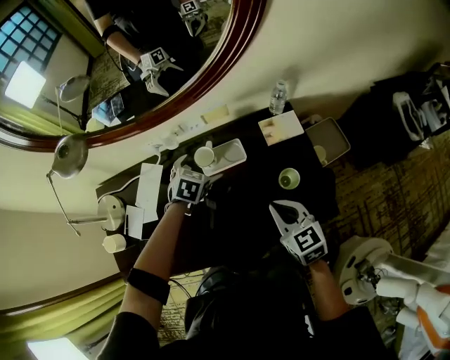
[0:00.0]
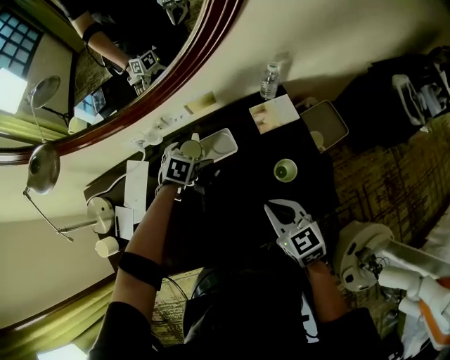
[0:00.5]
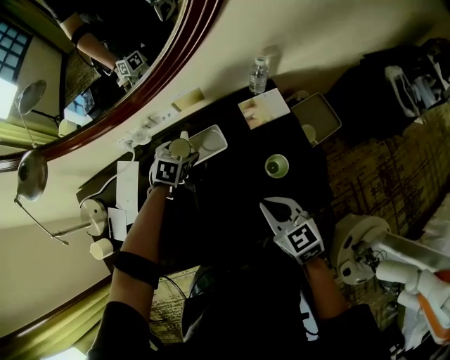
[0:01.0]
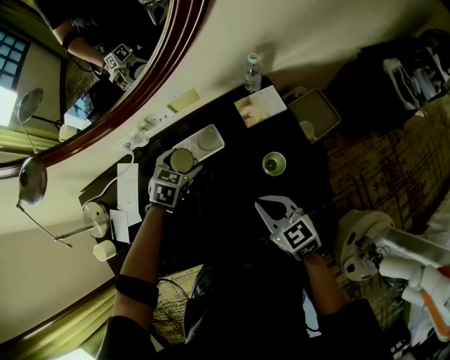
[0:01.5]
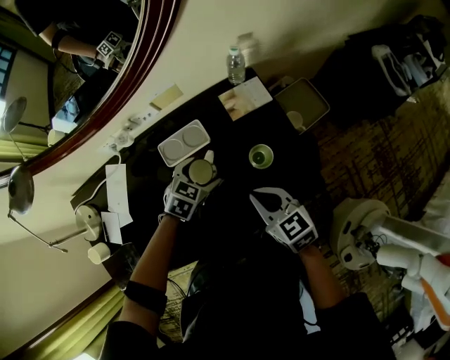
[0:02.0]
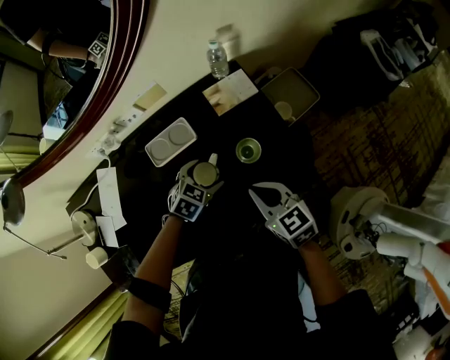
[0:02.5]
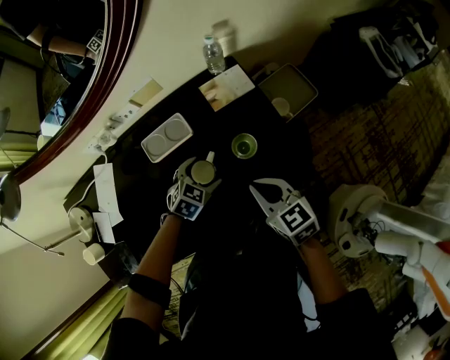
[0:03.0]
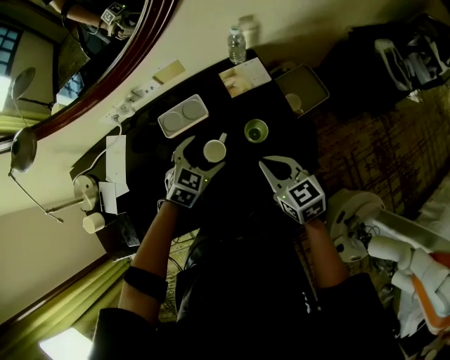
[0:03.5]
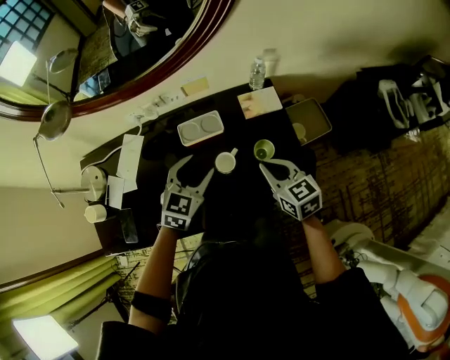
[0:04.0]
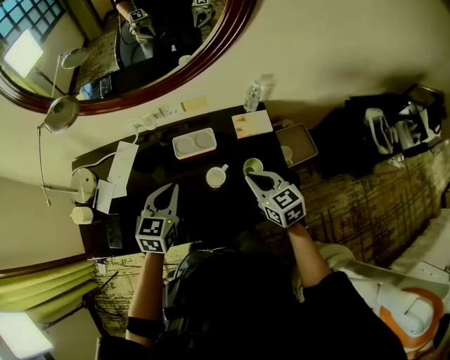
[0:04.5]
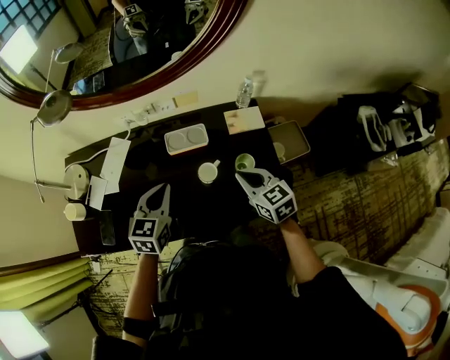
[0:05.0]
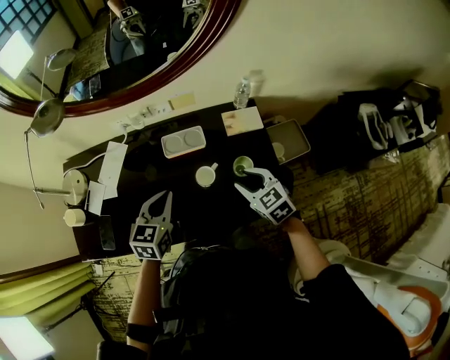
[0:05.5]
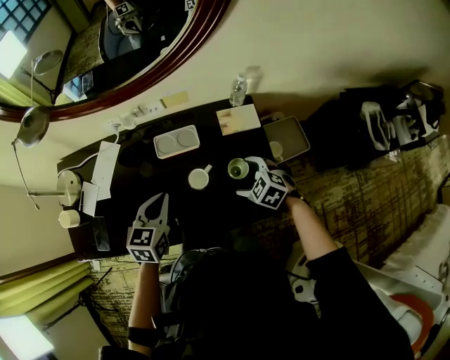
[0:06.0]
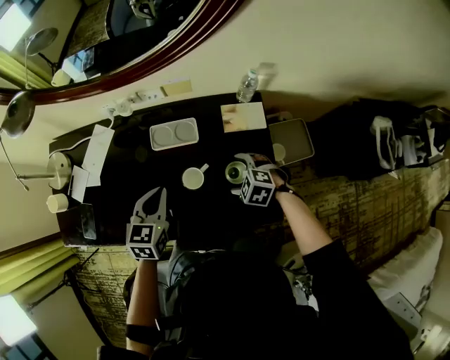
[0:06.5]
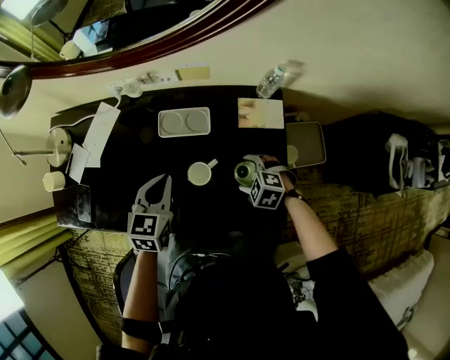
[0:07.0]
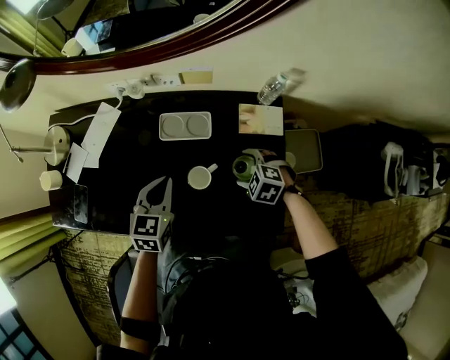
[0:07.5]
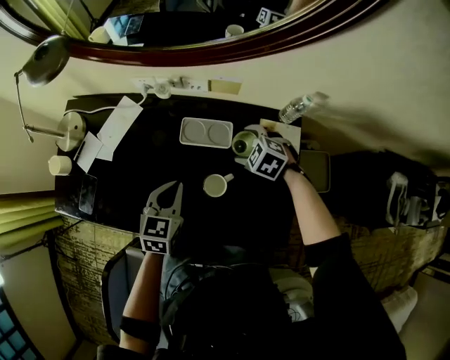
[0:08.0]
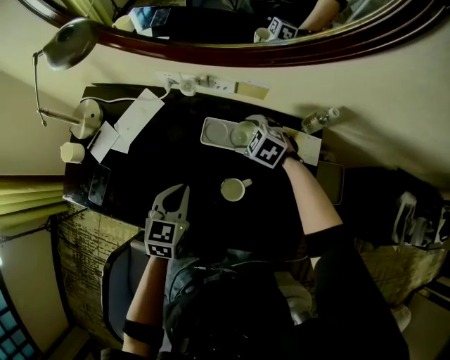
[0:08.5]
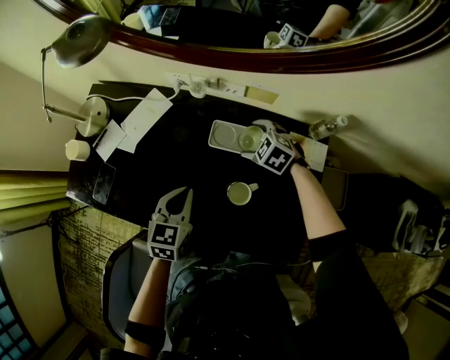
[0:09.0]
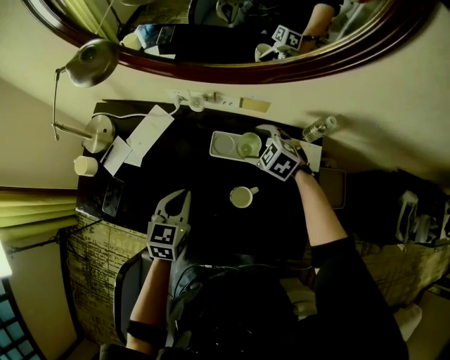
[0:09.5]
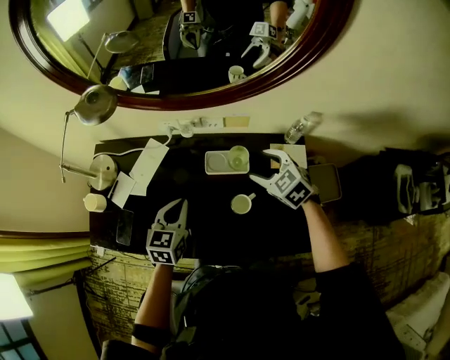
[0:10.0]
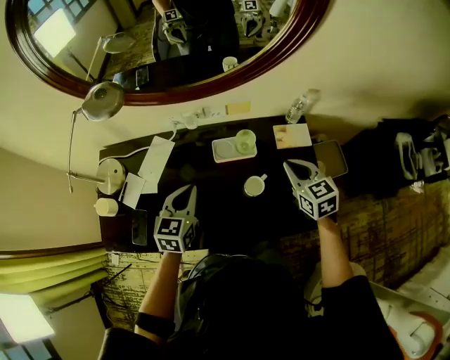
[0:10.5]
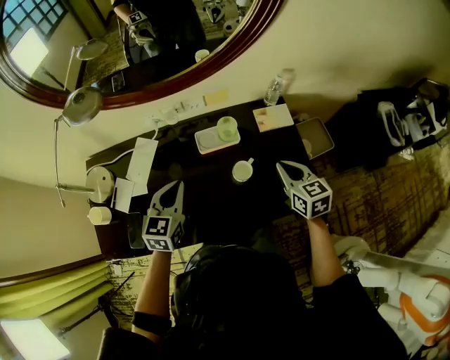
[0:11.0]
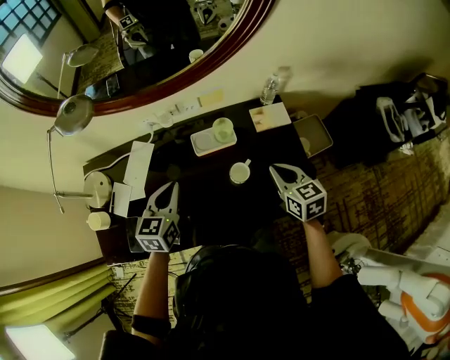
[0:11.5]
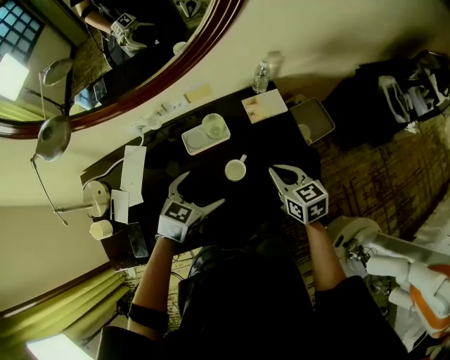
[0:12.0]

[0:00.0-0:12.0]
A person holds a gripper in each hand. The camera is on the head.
0:00.0 to 0:02.0: The right gripper is displaced downward by roughly 5 cm. The left gripper moves to the right, backward and downward, some 15 cm, and rotates approximately 20 degrees.
0:02.0 to 0:04.0: The left gripper moves upward, approximately 15 cm, and swivels approximately 30 degrees. The right gripper travels upward by some 5 cm.
0:04.0 to 0:06.0: The left gripper swivels about 30 degrees, and closes; the right gripper is displaced downward by roughly 10 cm, turns by roughly 50 degrees, and opens.
0:06.0 to 0:08.0: The right gripper shifts some 20 cm forward, and swivels approximately 20 degrees. Meanwhile the left gripper heads downward, covering approximately 5 cm.
0:08.0 to 0:10.0: The left gripper shifts about 10 cm to the left and upward, while the right gripper travels upward by about 15 cm, and rotates approximately 30 degrees.
0:10.0 to 0:12.0: The left gripper changes place by approximately 10 cm, swivels approximately 40 degrees, and opens; the right gripper moves about 15 cm, twists approximately 40 degrees clockwise, seen from behind, and closes.

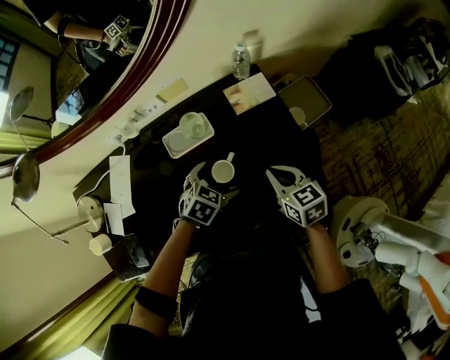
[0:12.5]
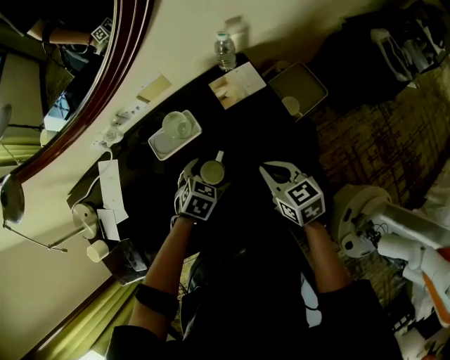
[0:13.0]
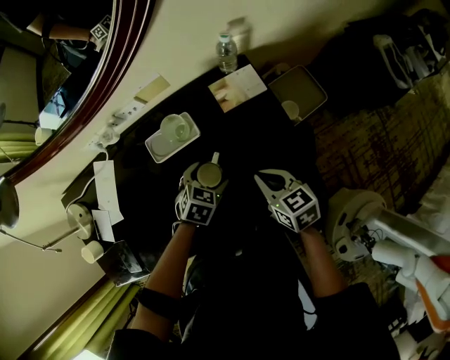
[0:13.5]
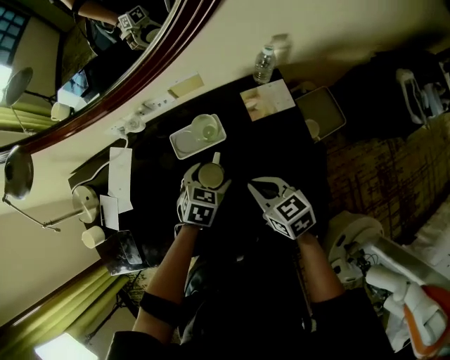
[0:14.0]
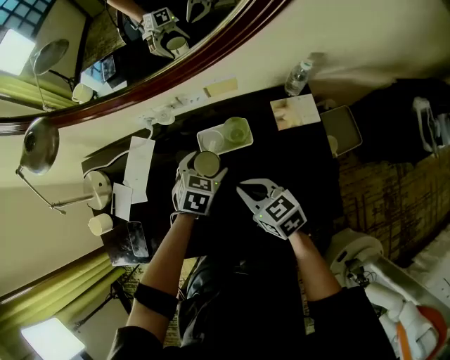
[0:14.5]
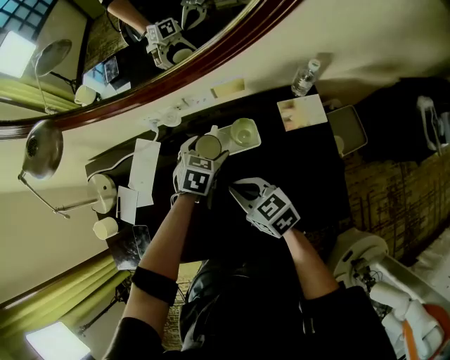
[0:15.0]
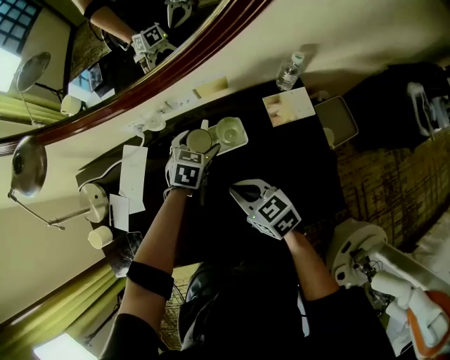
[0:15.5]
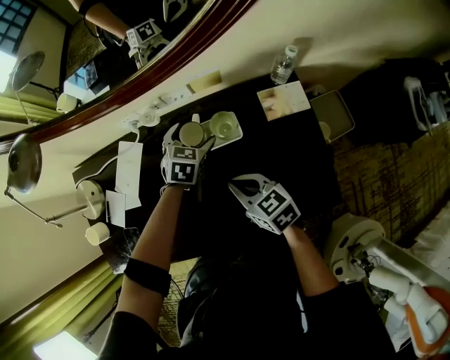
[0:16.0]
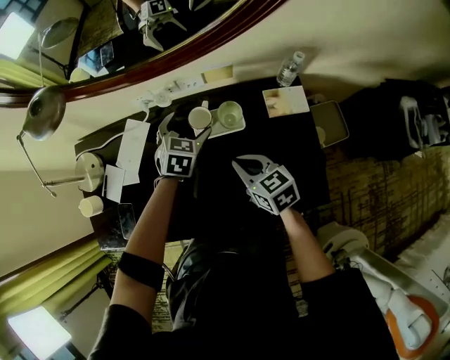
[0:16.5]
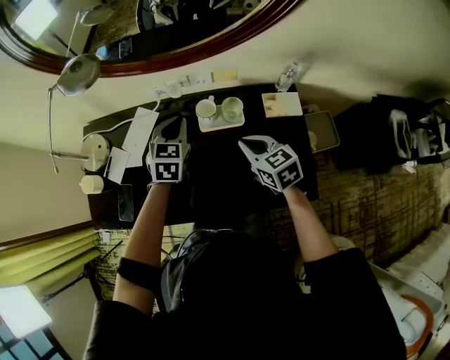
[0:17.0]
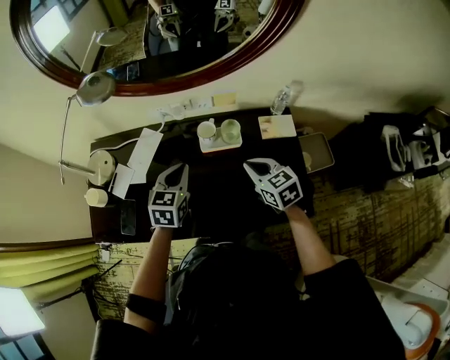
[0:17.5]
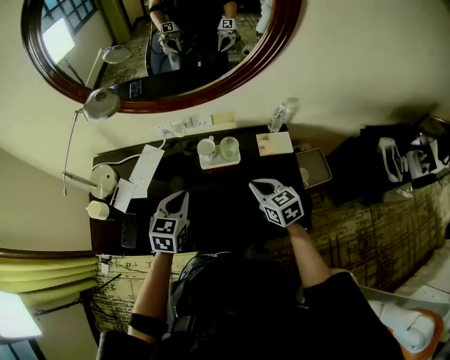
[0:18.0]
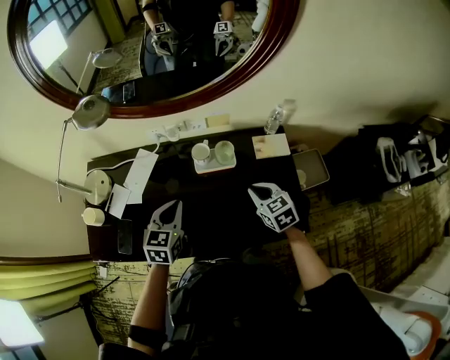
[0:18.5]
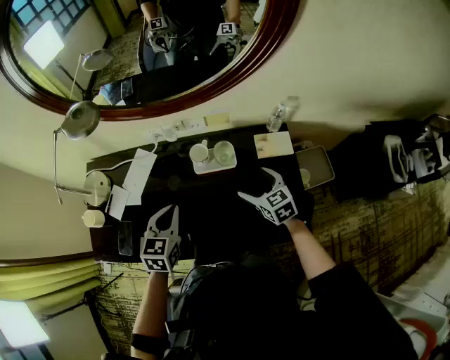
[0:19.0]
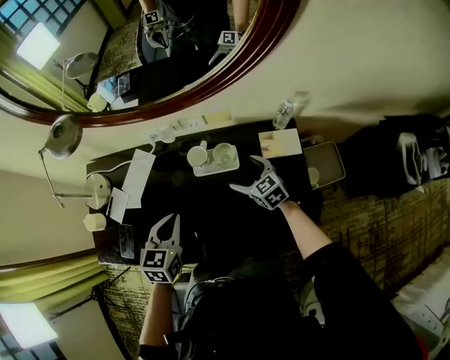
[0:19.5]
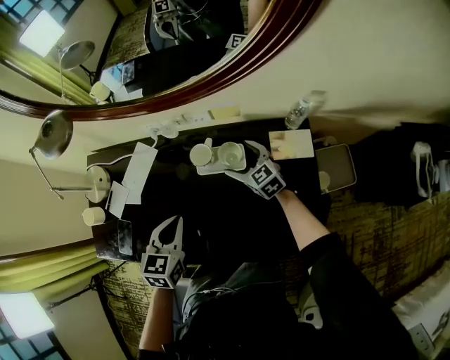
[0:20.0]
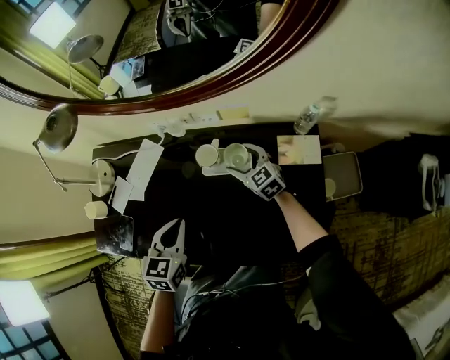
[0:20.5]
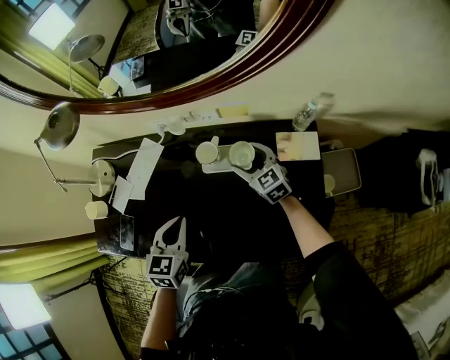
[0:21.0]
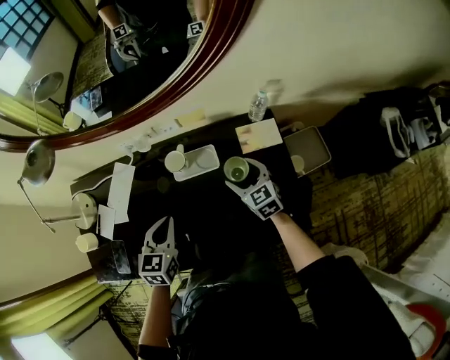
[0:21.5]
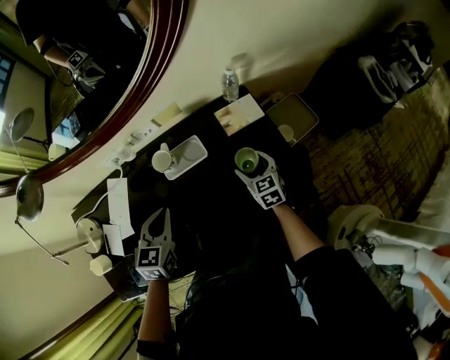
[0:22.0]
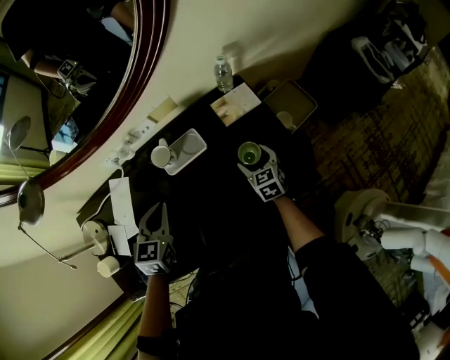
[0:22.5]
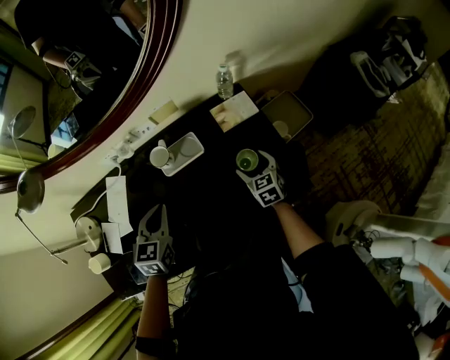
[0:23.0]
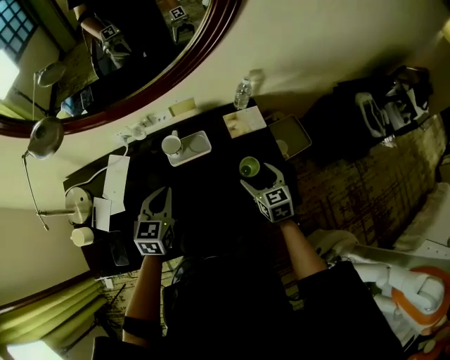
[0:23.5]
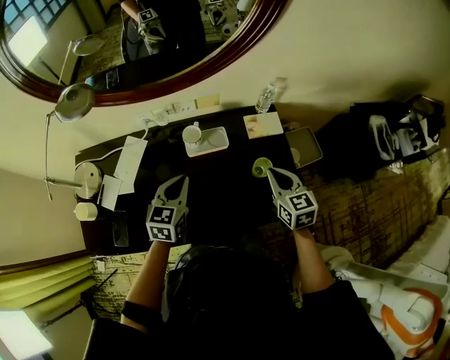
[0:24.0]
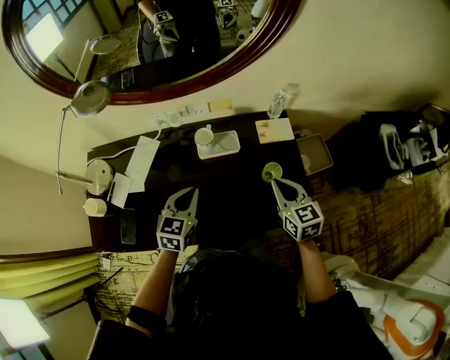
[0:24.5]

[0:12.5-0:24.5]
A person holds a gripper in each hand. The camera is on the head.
0:12.5 to 0:14.5: The right gripper changes place by roughly 20 cm, and changes its angle by some 30 degrees. The left gripper changes place by some 15 cm, and turns by roughly 30 degrees.
0:14.5 to 0:16.5: The left gripper heads forward and upward, covering approximately 10 cm.
0:16.5 to 0:18.5: The right gripper shifts about 10 cm to the right. Meanwhile the left gripper travels backward, upward and to the left by approximately 25 cm, and closes up.
0:18.5 to 0:20.5: The left gripper ends up roughly 5 cm from where it was, while the right gripper is displaced forward and downward by some 25 cm, rotates some 20 degrees, and opens.
0:20.5 to 0:22.5: The right gripper changes place by roughly 25 cm, and changes its angle by approximately 50 degrees. Meanwhile the left gripper changes place by some 5 cm, and rotates some 20 degrees.
0:22.5 to 0:24.5: The left gripper moves backward, approximately 5 cm; the right gripper travels upward by approximately 20 cm, and closes.

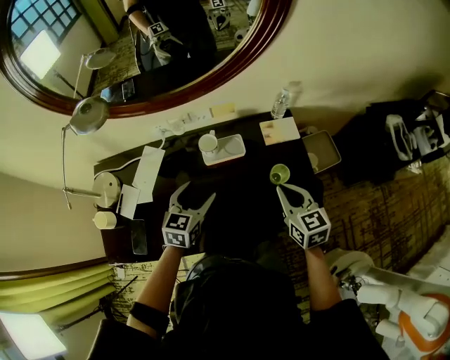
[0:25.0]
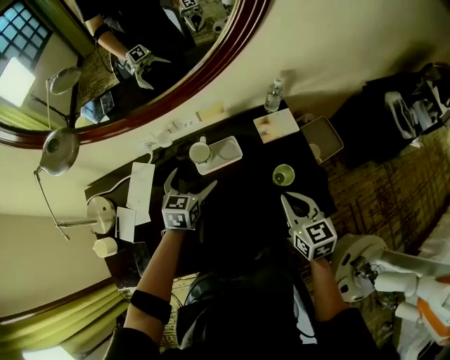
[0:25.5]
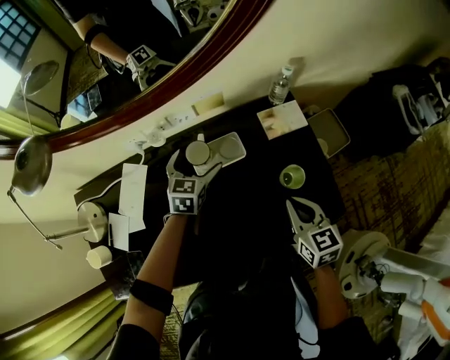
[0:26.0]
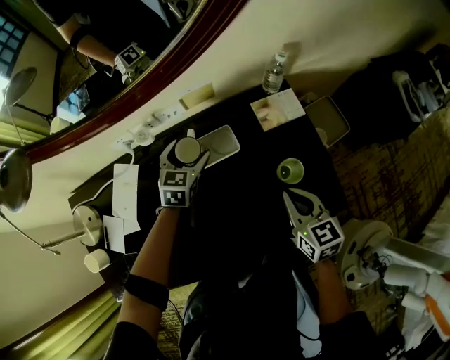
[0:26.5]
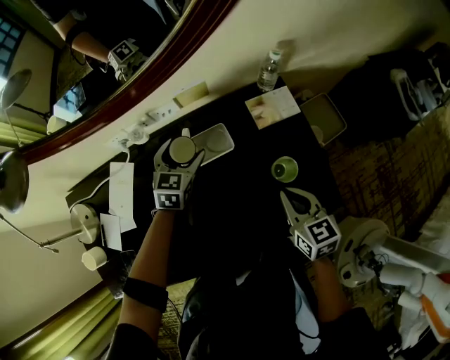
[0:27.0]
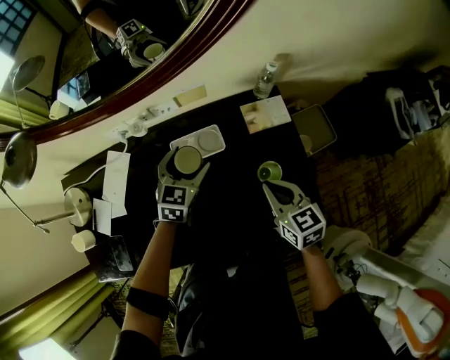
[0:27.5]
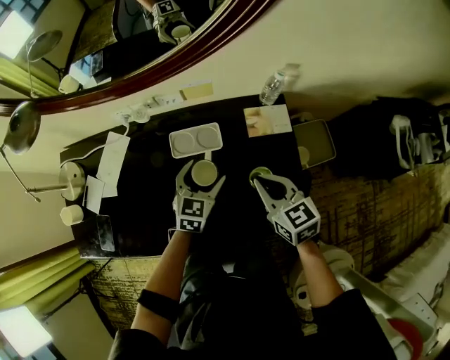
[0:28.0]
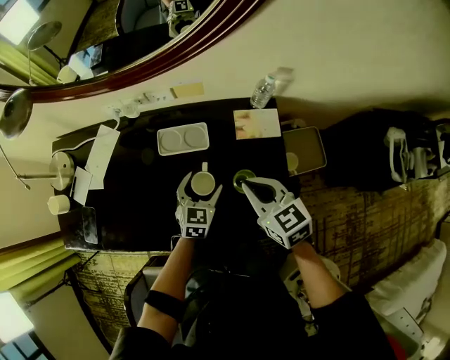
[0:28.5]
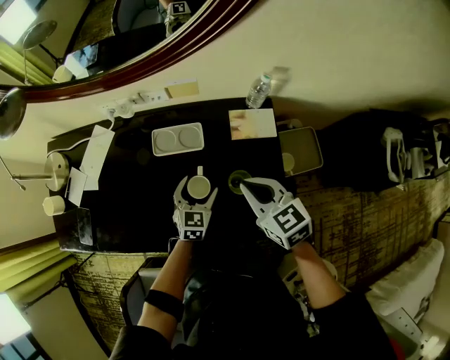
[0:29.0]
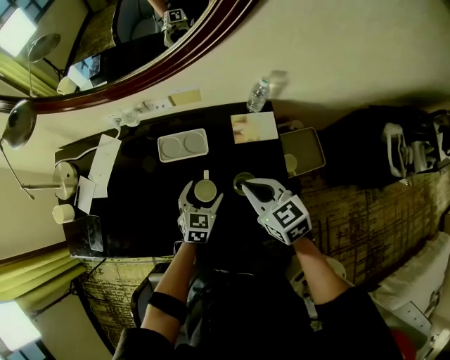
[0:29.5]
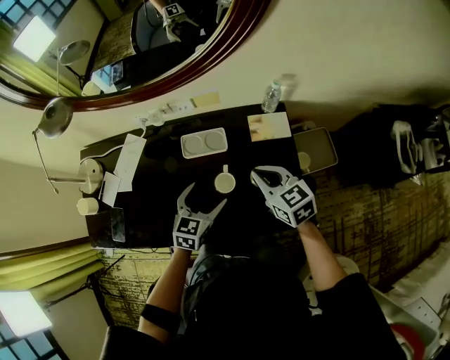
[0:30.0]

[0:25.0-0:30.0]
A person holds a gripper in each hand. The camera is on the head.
0:25.0 to 0:27.5: The right gripper travels downward by roughly 5 cm; the left gripper goes some 15 cm forward and downward.
0:27.5 to 0:30.0: The right gripper changes place by about 5 cm, while the left gripper heads backward, covering about 15 cm.
